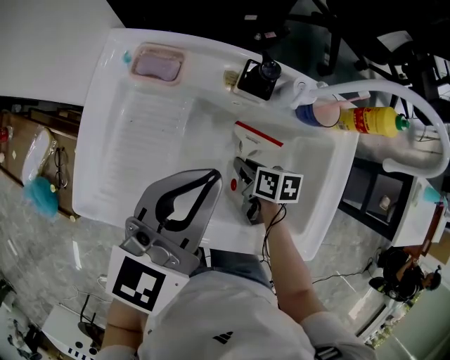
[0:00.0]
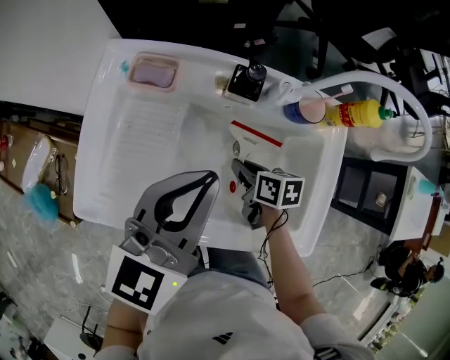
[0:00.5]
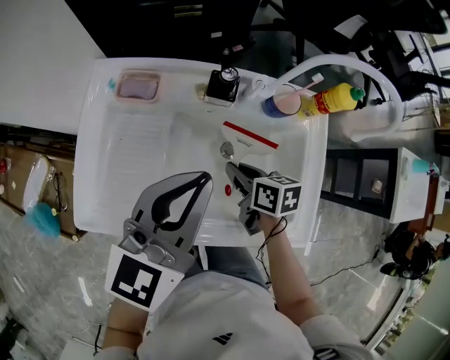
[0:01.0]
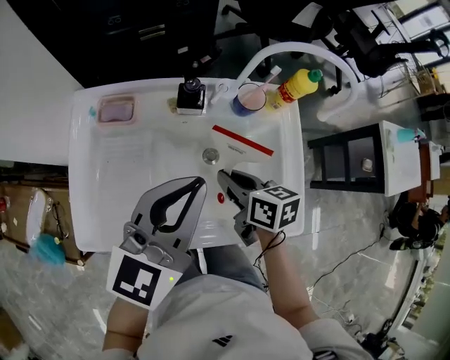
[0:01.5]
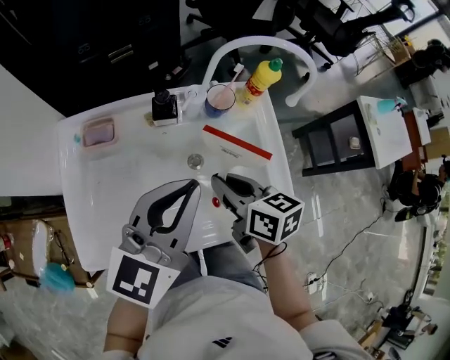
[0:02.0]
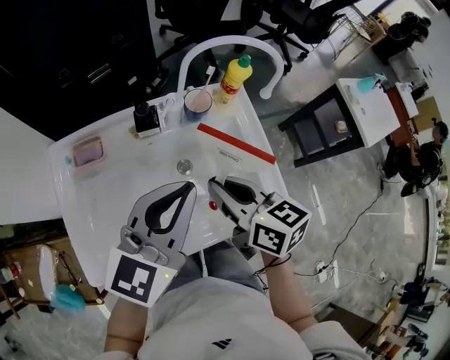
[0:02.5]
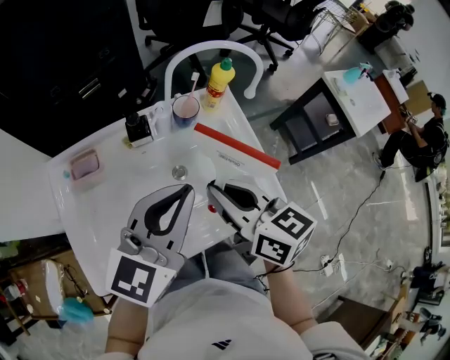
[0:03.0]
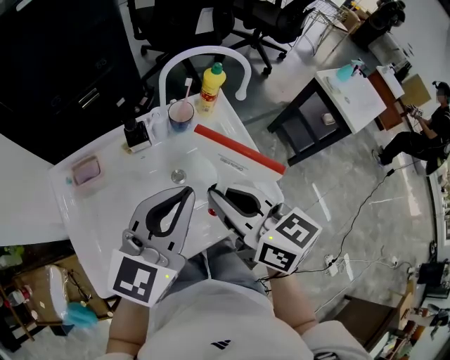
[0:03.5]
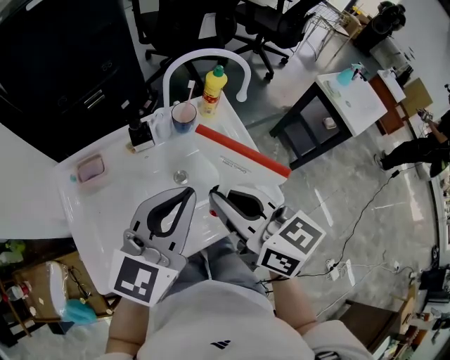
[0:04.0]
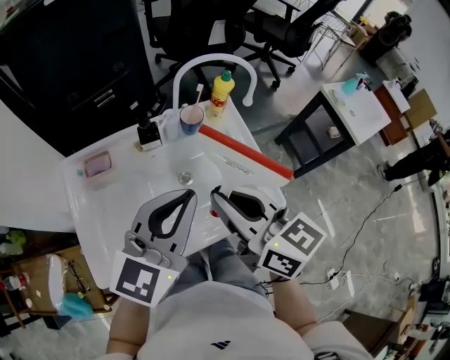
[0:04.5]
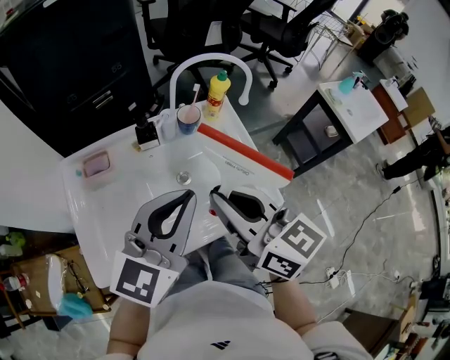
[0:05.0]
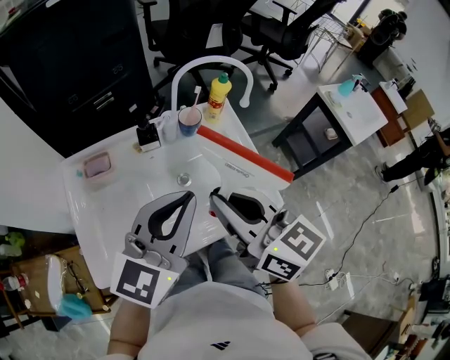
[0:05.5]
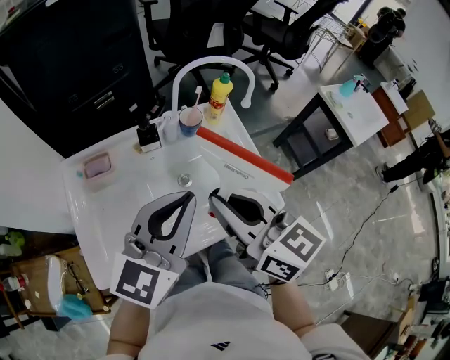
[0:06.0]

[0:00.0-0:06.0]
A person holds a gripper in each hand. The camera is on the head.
0:00.0 to 0:02.0: The right gripper travels upward by approximately 20 cm, and changes its angle by about 30 degrees; the left gripper shifts by roughly 10 cm, and turns by roughly 20 degrees.
0:02.0 to 0:04.0: The left gripper changes place by roughly 5 cm. The right gripper goes some 15 cm upward and backward, and swivels about 20 degrees.
0:04.0 to 0:06.0: The grippers stay close to where they were, moving slightly.

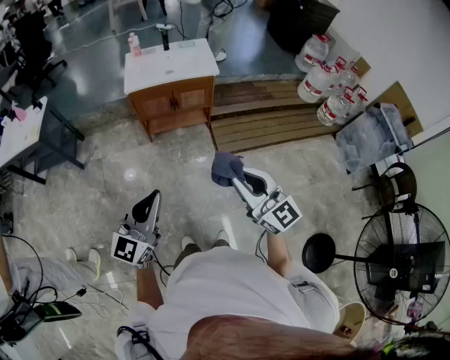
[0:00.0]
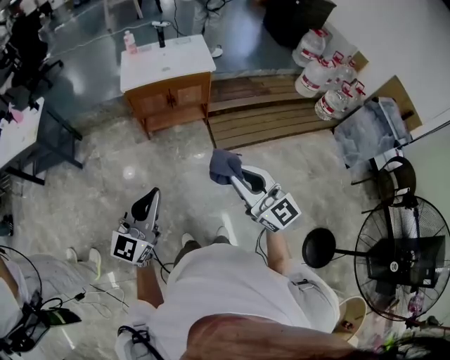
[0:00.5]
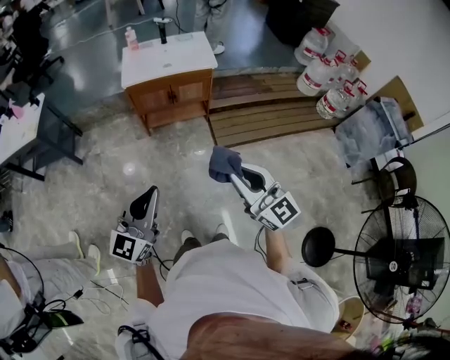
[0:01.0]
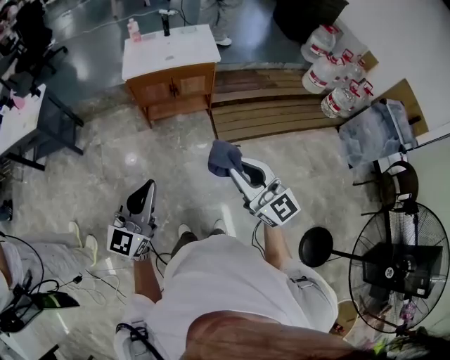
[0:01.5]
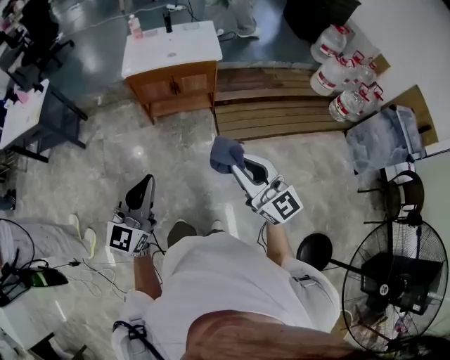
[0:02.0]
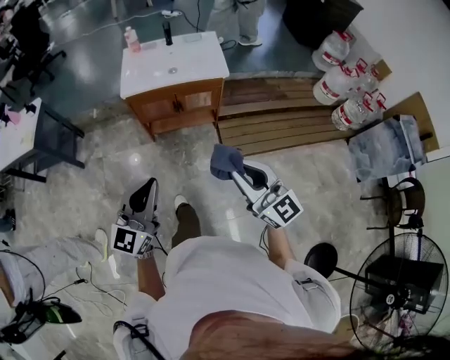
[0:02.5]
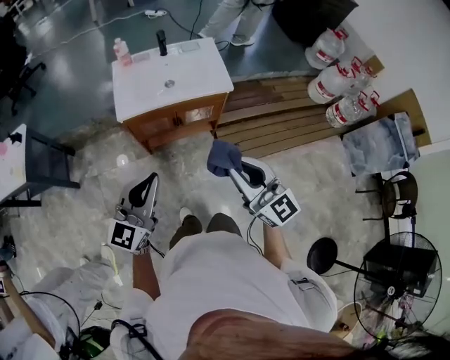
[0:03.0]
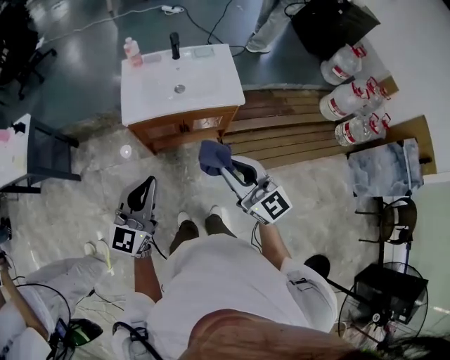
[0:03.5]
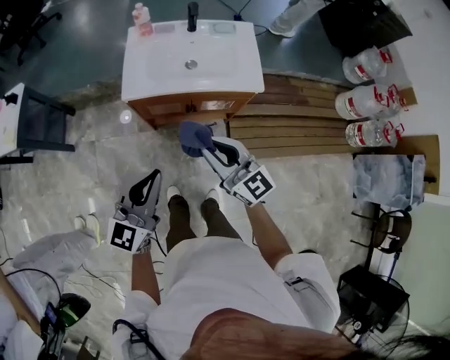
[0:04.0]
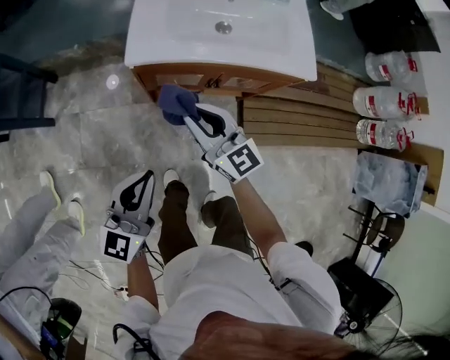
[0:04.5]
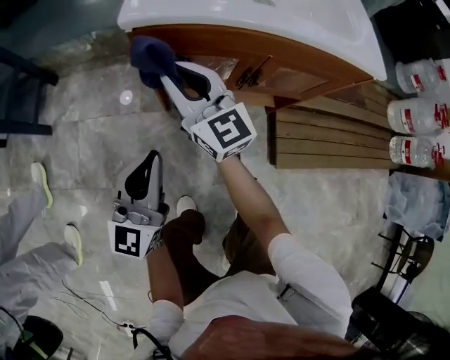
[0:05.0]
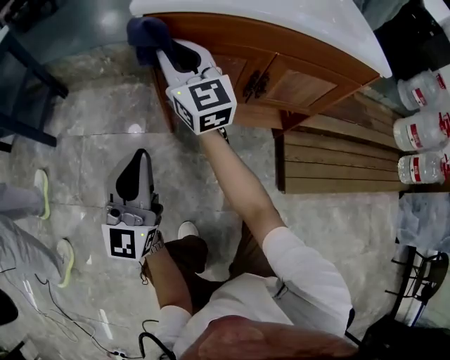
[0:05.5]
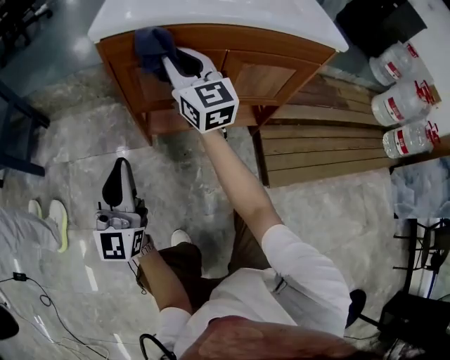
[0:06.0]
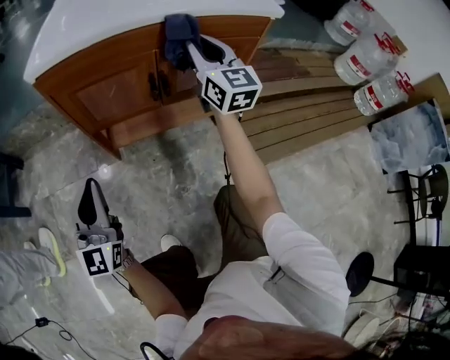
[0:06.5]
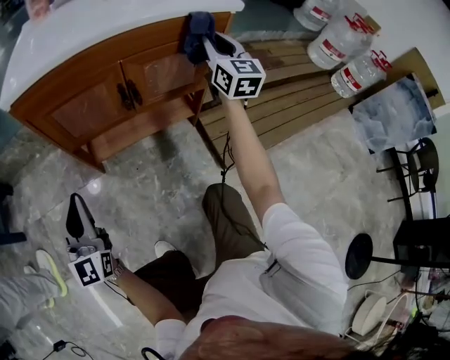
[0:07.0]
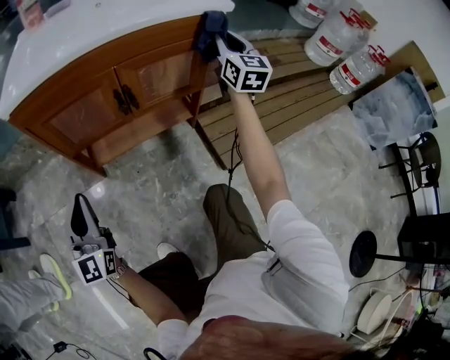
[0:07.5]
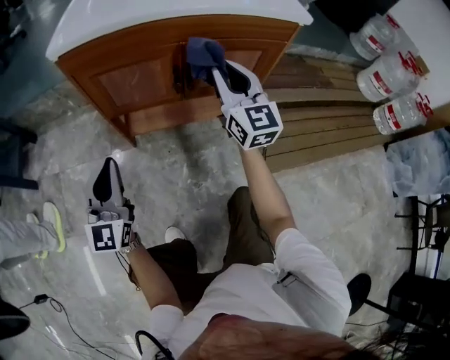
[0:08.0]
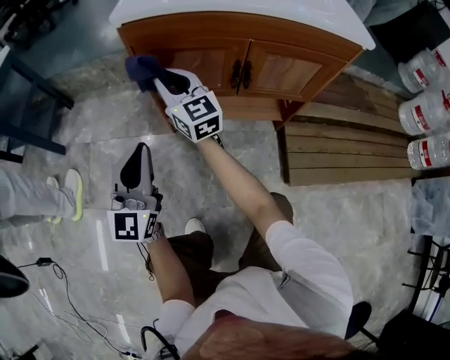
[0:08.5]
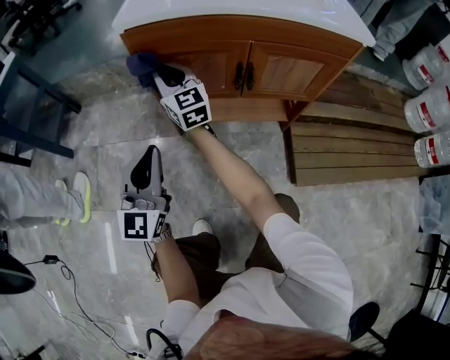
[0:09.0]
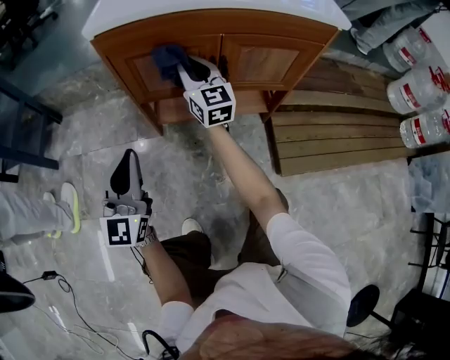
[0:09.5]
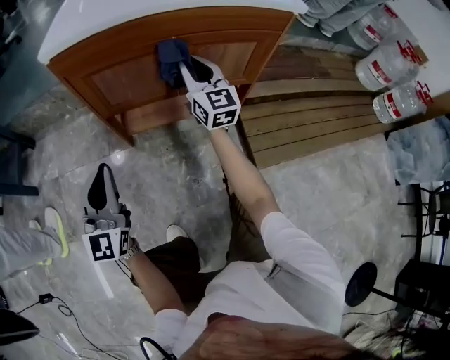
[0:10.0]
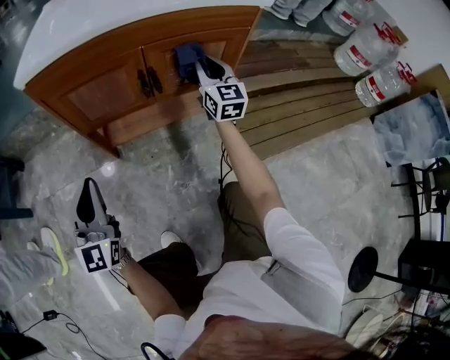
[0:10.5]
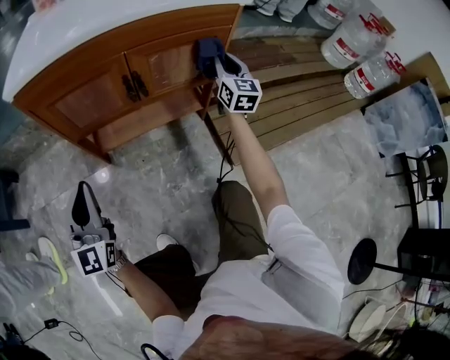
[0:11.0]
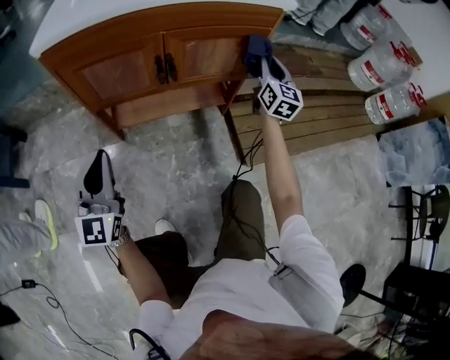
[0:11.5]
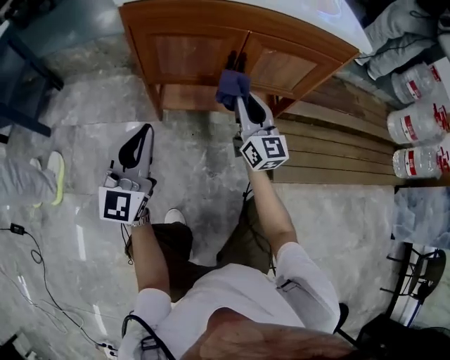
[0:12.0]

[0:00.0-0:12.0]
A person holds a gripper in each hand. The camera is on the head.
0:00.0 to 0:02.0: Both grippers move to the right, some 5 cm.
0:02.0 to 0:04.0: The pair of grippers is taken forward, approximately 50 cm.
0:04.0 to 0:06.0: The right gripper is displaced downward and forward by roughly 40 cm. Meanwhile the left gripper goes some 50 cm downward, and turns by roughly 30 degrees.
0:06.0 to 0:08.0: The left gripper shifts by approximately 5 cm. Meanwhile the right gripper shifts some 20 cm to the right.
0:08.0 to 0:10.0: The right gripper travels forward and downward by some 10 cm, and travels to the left and back again, roughly 30 cm each way.
0:10.0 to 0:12.0: The right gripper travels backward by about 10 cm, and travels to the right and back again, about 25 cm each way.

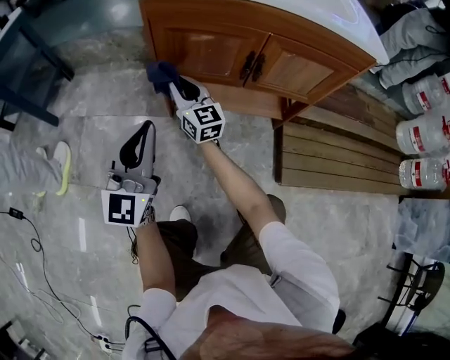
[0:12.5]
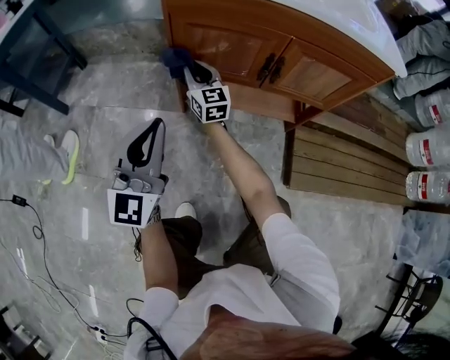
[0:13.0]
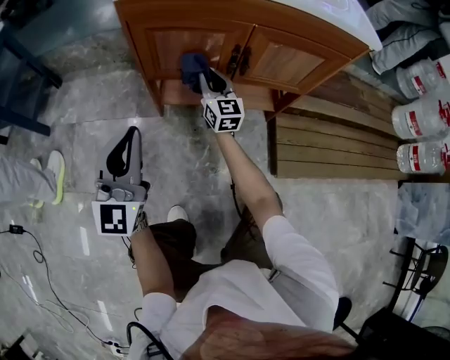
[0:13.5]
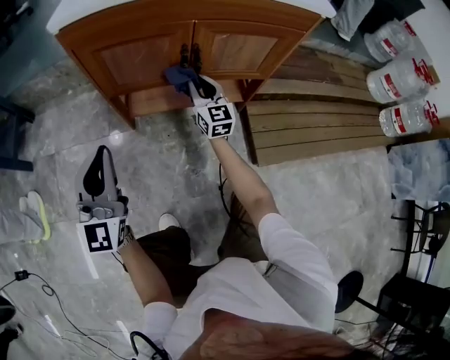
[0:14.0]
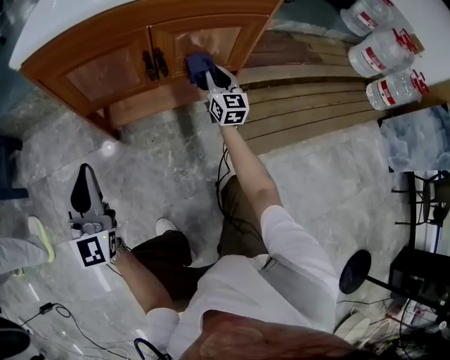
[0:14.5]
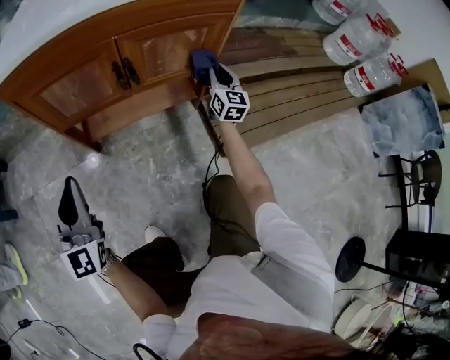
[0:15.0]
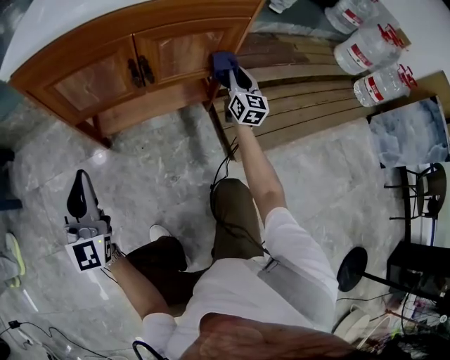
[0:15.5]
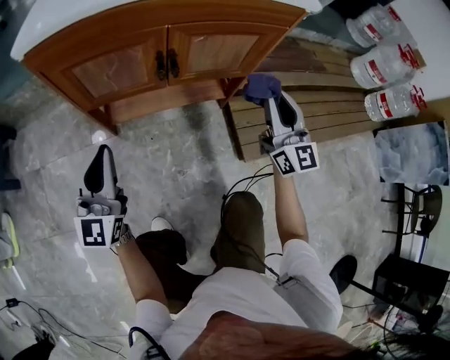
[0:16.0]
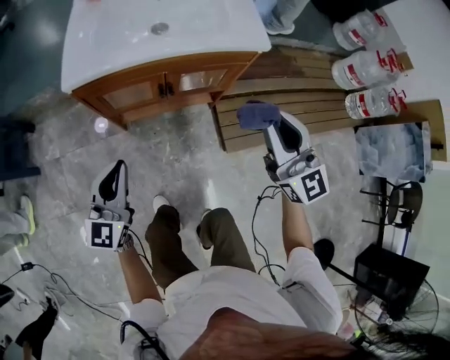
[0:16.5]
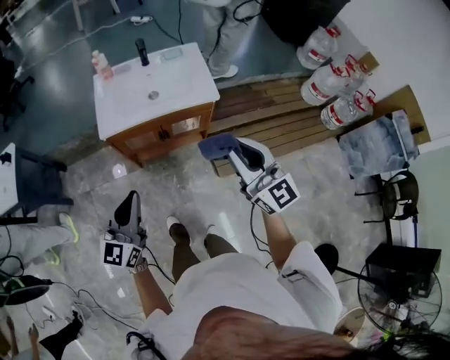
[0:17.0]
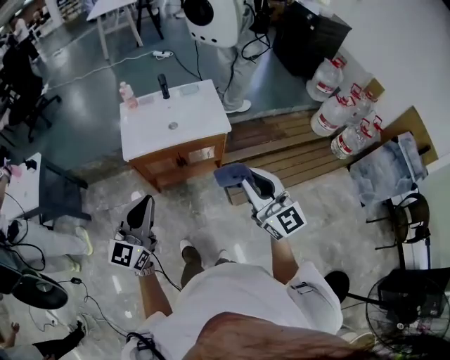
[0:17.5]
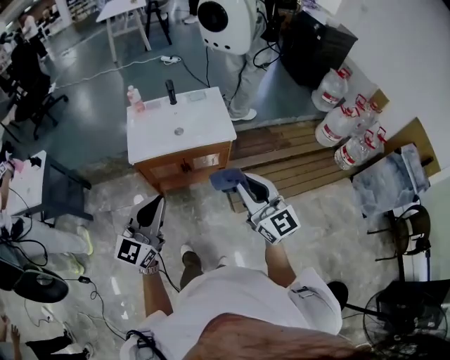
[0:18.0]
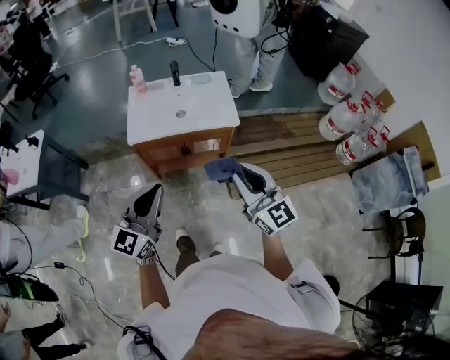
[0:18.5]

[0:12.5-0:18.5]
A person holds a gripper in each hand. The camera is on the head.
0:12.5 to 0:14.5: The right gripper moves to the right, some 40 cm, and rotates roughly 40 degrees.
0:14.5 to 0:16.5: The right gripper is displaced upward and backward by some 50 cm, while the left gripper moves upward, about 20 cm, and turns by about 20 degrees.
0:16.5 to 0:18.5: The left gripper travels upward by some 40 cm; the right gripper moves upward and backward, about 30 cm.

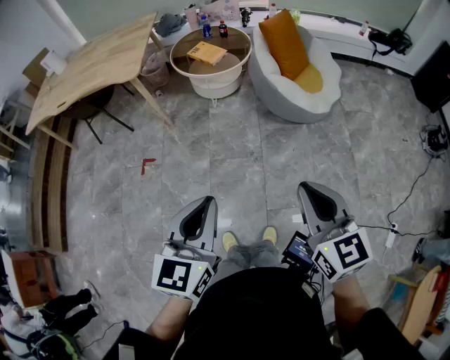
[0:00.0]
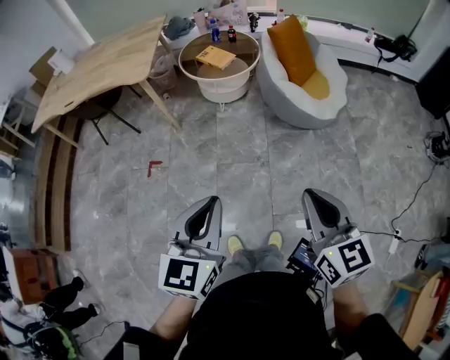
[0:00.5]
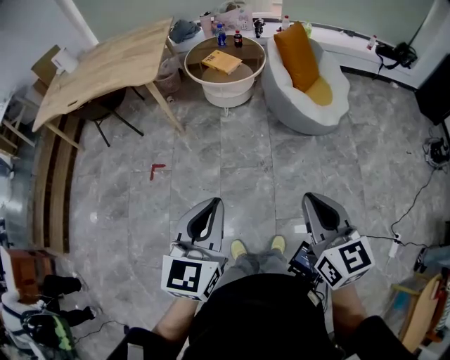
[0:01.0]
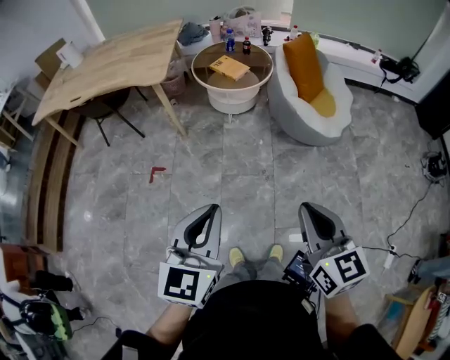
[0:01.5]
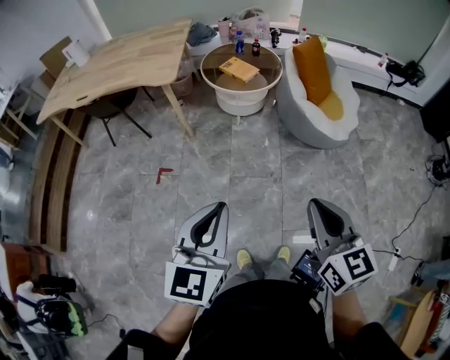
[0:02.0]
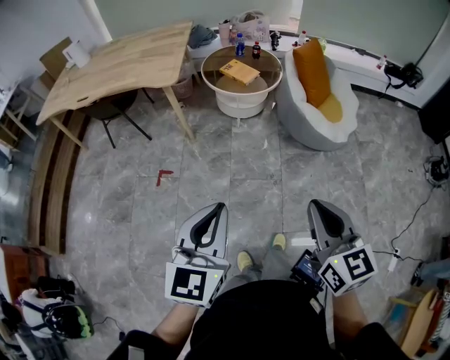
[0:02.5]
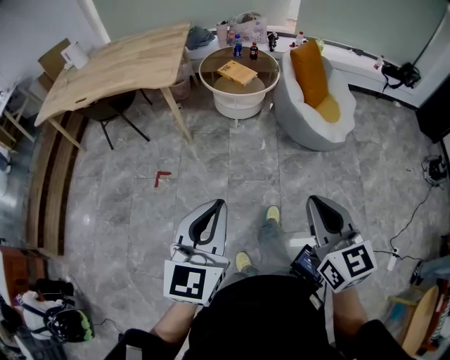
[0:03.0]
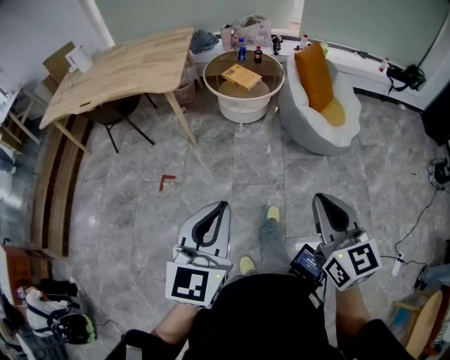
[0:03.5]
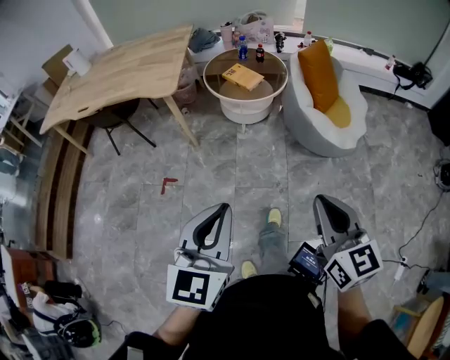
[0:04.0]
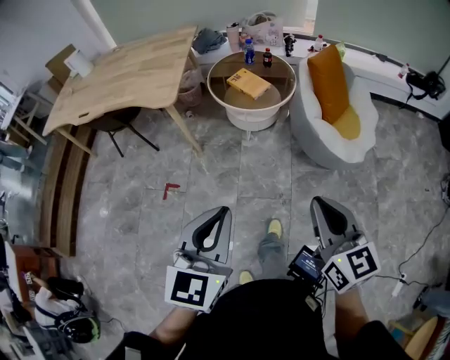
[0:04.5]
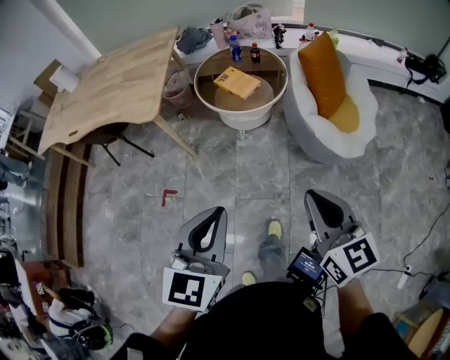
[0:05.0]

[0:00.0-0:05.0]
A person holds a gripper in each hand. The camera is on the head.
0:00.0 to 0:02.5: The two grippers go approximately 15 cm to the left.
0:02.5 to 0:05.0: The right gripper shifts roughly 25 cm forward. The left gripper travels forward and to the right by about 25 cm.
